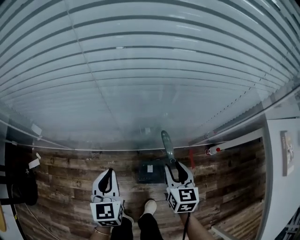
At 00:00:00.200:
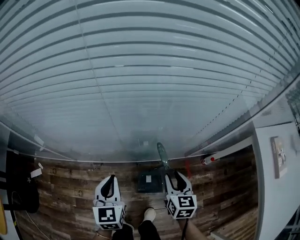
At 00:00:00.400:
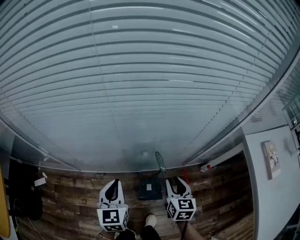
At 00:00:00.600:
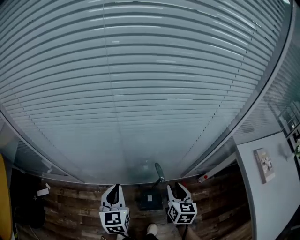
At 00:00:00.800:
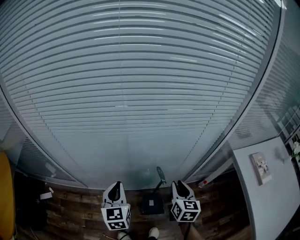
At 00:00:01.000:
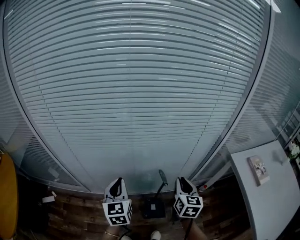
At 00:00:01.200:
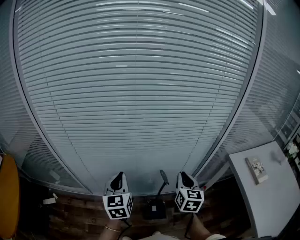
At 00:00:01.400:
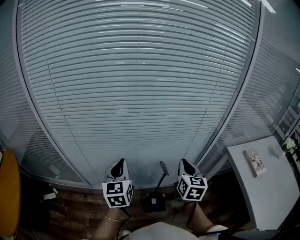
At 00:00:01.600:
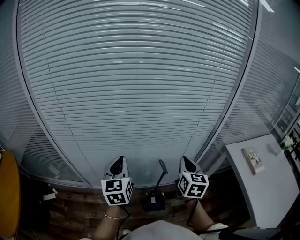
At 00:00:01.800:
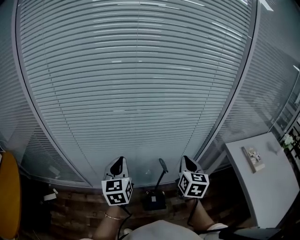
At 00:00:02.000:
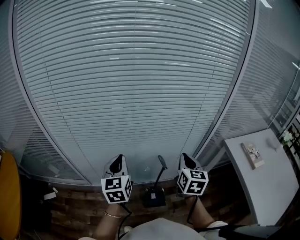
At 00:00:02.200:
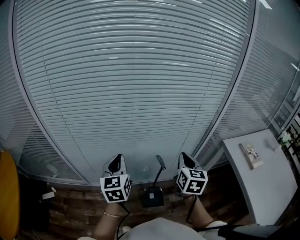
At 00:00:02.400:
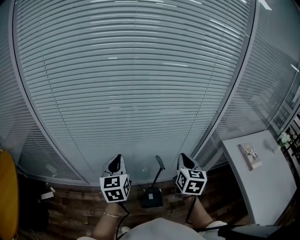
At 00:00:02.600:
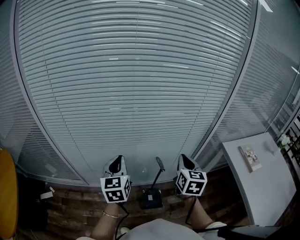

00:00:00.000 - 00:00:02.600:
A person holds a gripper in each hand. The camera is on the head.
00:00:00.000 - 00:00:01.200: The grippers both shift upward by about 30 cm. The right gripper rotates roughly 20 degrees, and closes up.
00:00:01.200 - 00:00:02.600: The right gripper is displaced upward by approximately 5 cm.

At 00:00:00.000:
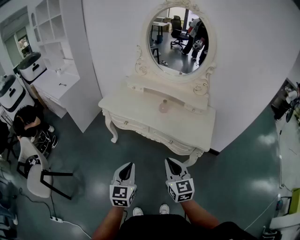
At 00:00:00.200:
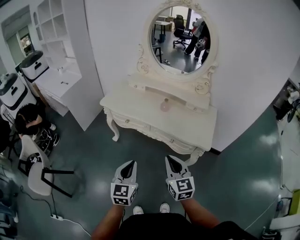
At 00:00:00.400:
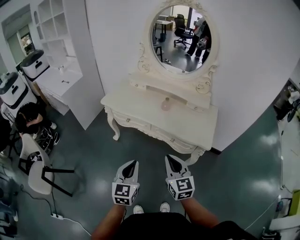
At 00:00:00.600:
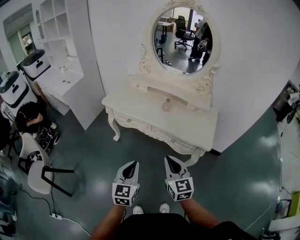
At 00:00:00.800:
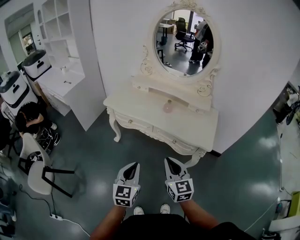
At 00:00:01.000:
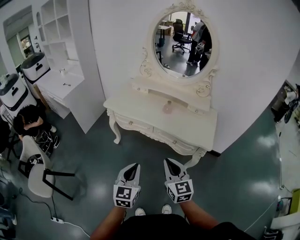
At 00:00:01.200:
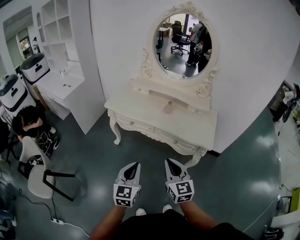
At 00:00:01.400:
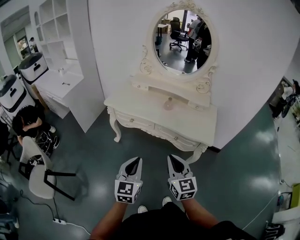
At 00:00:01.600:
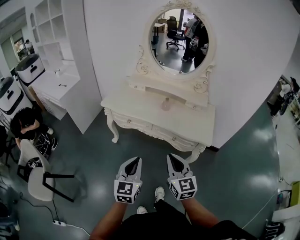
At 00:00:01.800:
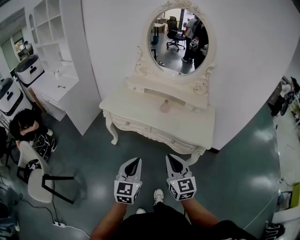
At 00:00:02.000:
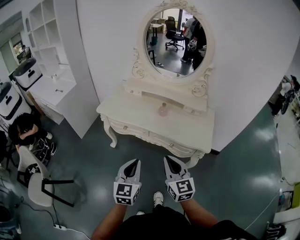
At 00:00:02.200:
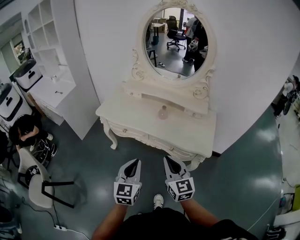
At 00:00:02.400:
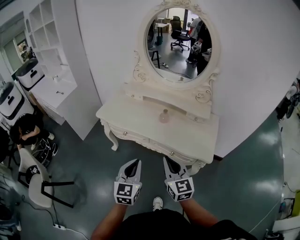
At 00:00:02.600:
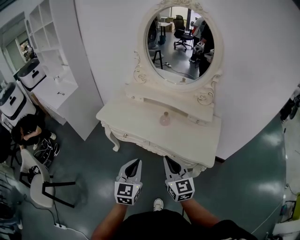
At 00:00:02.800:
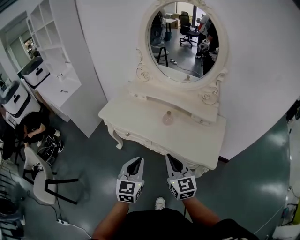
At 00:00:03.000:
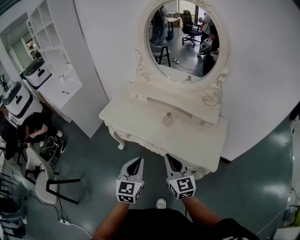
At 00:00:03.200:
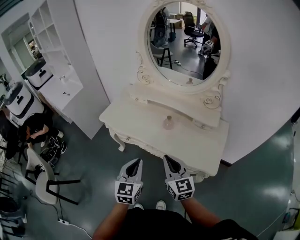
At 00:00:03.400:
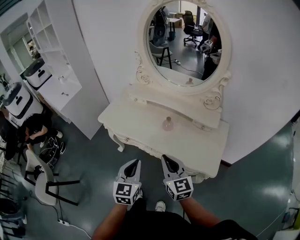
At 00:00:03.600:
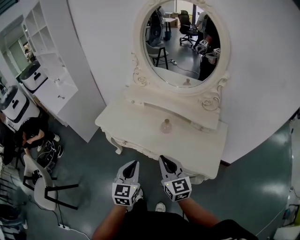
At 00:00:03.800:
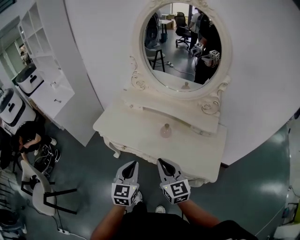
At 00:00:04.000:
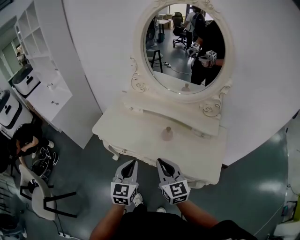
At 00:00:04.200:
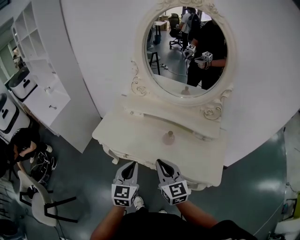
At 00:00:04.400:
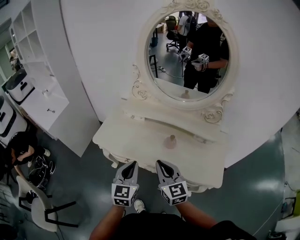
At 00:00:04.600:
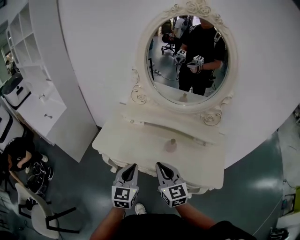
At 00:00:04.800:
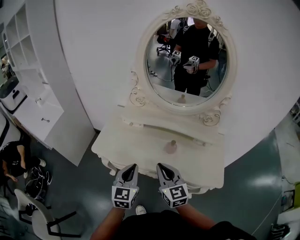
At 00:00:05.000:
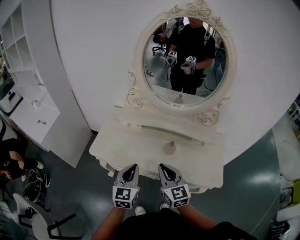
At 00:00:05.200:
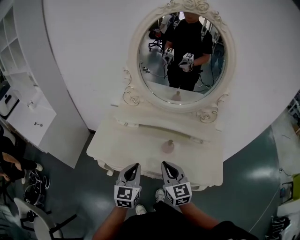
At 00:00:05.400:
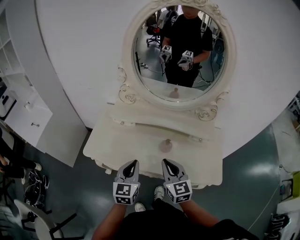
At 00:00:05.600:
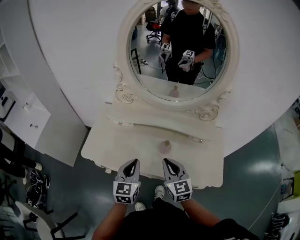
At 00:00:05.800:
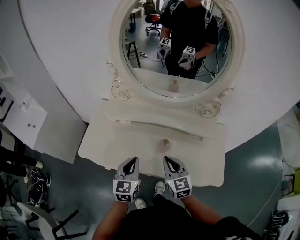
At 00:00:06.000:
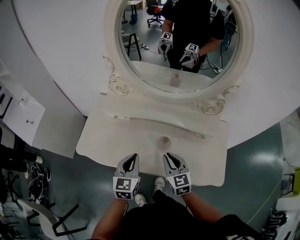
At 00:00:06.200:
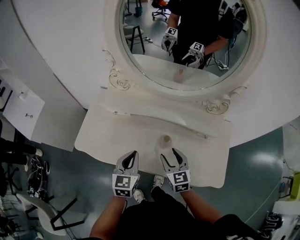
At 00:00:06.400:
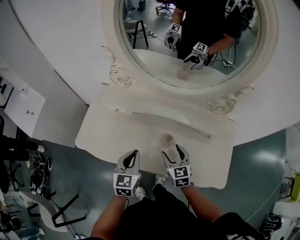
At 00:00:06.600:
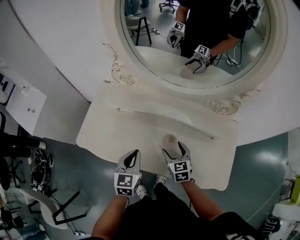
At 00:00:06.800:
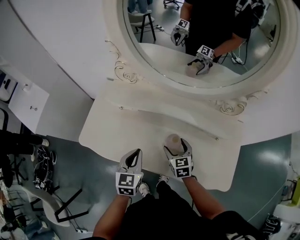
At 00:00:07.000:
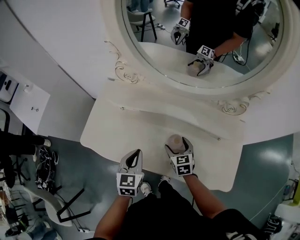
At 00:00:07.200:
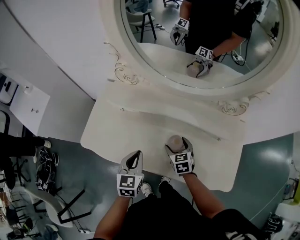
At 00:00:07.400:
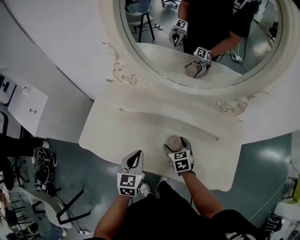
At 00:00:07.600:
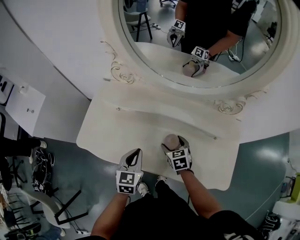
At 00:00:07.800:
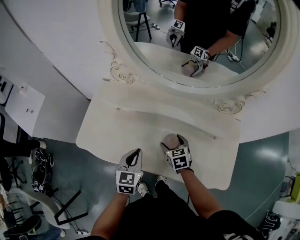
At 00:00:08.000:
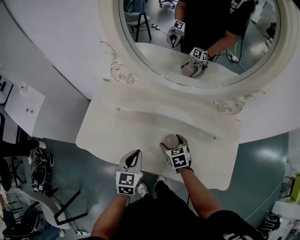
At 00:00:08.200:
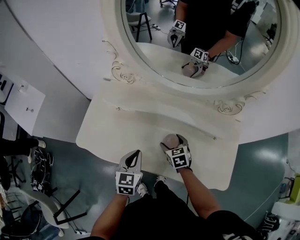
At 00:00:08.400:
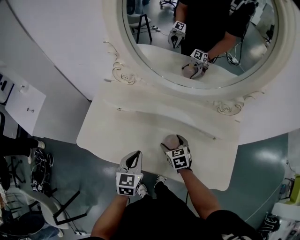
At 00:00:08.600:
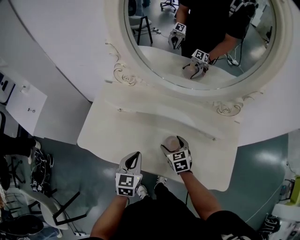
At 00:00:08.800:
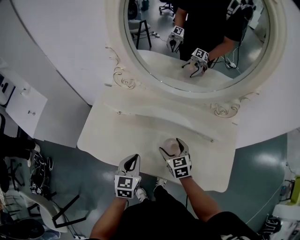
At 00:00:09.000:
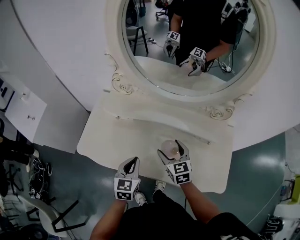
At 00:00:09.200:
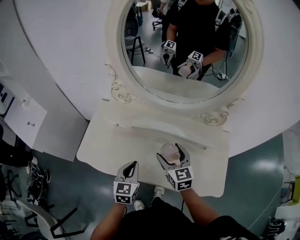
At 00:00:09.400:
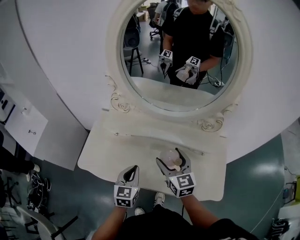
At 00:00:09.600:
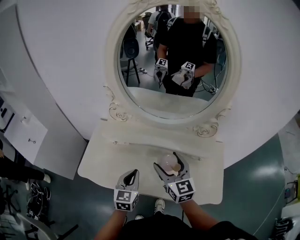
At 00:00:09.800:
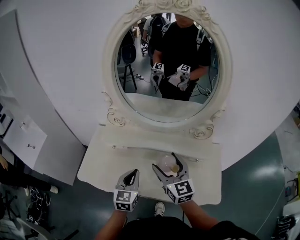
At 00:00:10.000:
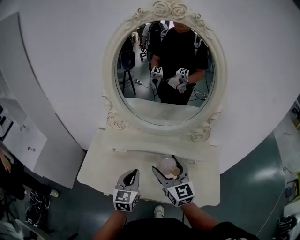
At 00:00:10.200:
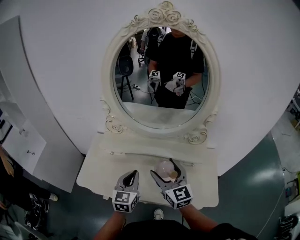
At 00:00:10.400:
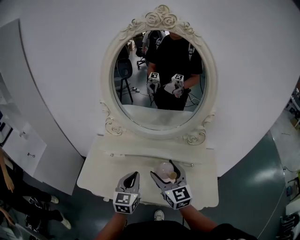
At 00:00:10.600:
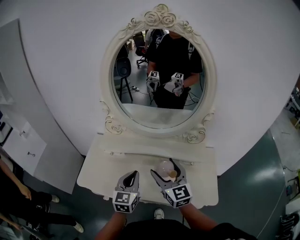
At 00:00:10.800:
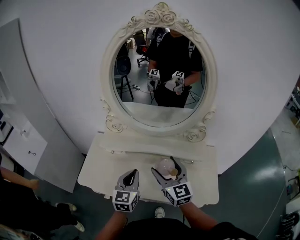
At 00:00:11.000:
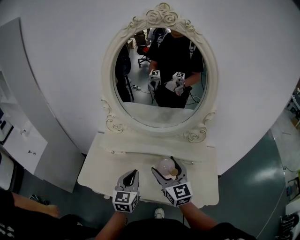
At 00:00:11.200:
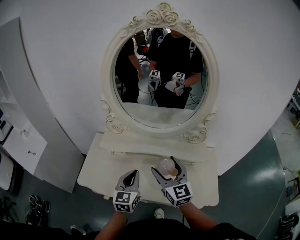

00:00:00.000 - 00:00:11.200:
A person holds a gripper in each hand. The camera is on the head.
00:00:00.000 - 00:00:01.600: The grippers stay close to where they were, moving slightly.
00:00:01.600 - 00:00:03.200: The right gripper moves forward, roughly 20 cm. Meanwhile the left gripper moves forward and to the right, about 20 cm.
00:00:03.200 - 00:00:04.800: The two grippers go approximately 20 cm forward and to the left.
00:00:04.800 - 00:00:06.400: The right gripper goes roughly 25 cm downward, forward and to the right, swivels about 20 degrees, and opens its fingers; the left gripper shifts roughly 20 cm forward, downward and to the right.
00:00:06.400 - 00:00:08.000: The right gripper is displaced downward and forward by about 10 cm.
00:00:08.000 - 00:00:09.600: The right gripper moves upward, approximately 25 cm, and tilts its fingers roughly 40 degrees upward. The left gripper travels upward by roughly 10 cm.
00:00:09.600 - 00:00:11.200: The left gripper moves upward, about 5 cm. The right gripper changes place by about 5 cm.

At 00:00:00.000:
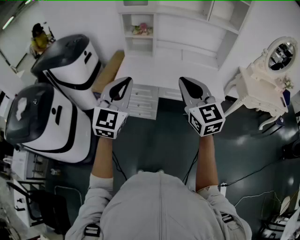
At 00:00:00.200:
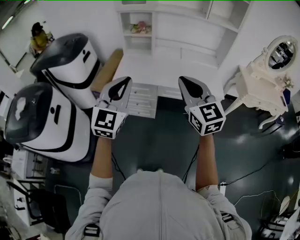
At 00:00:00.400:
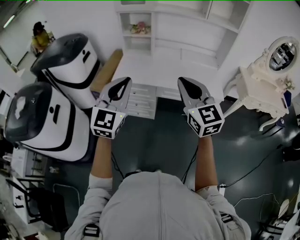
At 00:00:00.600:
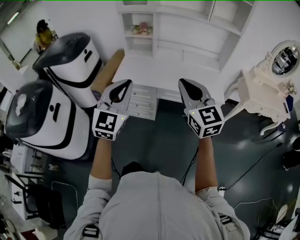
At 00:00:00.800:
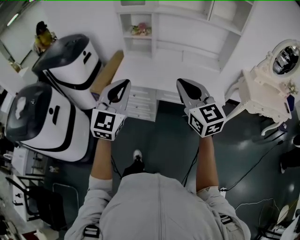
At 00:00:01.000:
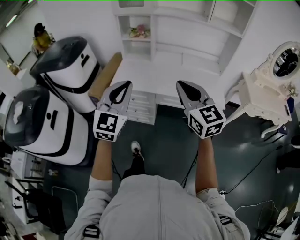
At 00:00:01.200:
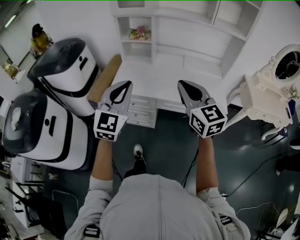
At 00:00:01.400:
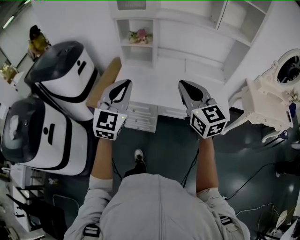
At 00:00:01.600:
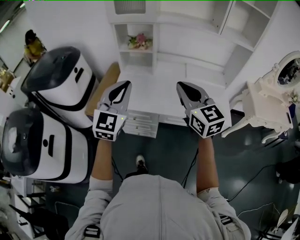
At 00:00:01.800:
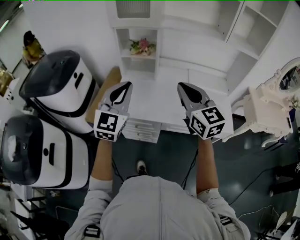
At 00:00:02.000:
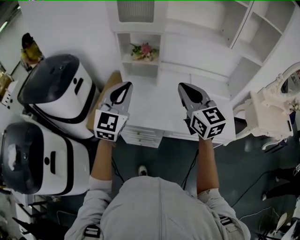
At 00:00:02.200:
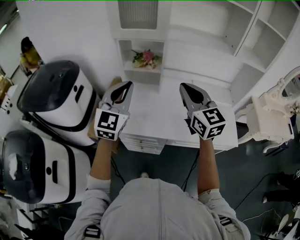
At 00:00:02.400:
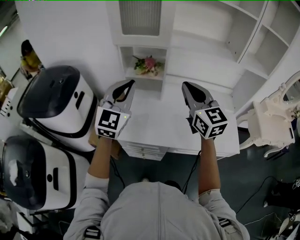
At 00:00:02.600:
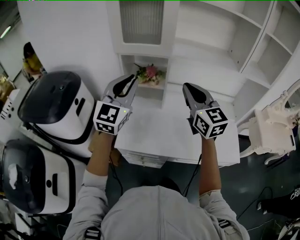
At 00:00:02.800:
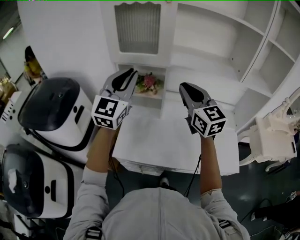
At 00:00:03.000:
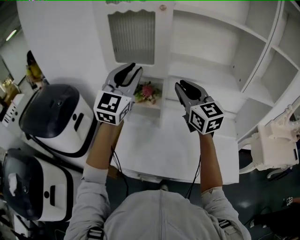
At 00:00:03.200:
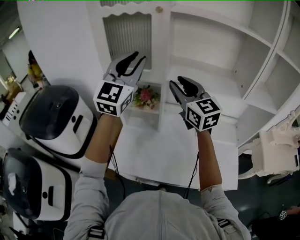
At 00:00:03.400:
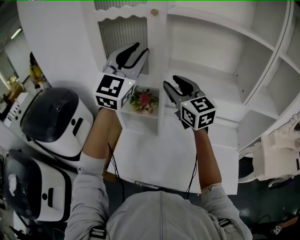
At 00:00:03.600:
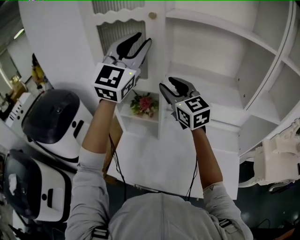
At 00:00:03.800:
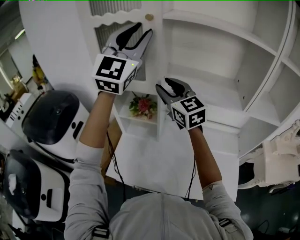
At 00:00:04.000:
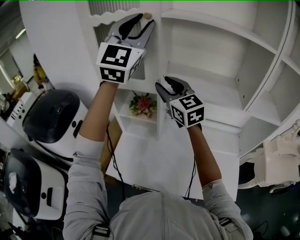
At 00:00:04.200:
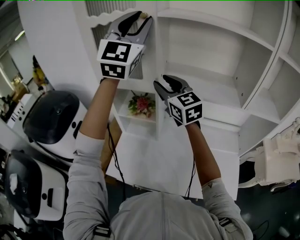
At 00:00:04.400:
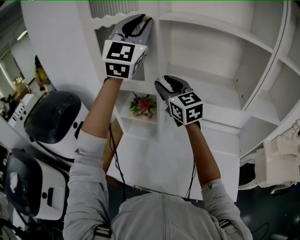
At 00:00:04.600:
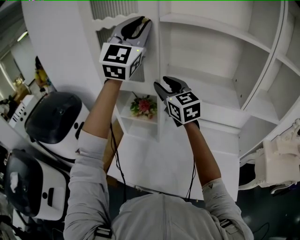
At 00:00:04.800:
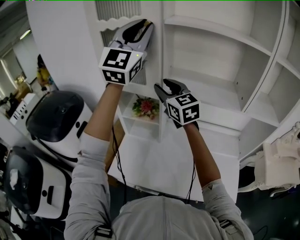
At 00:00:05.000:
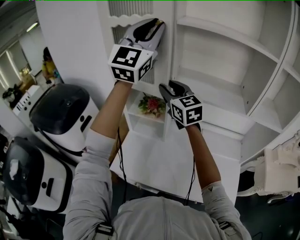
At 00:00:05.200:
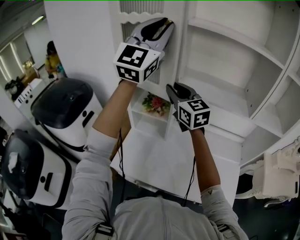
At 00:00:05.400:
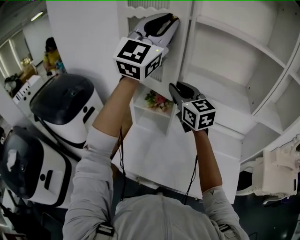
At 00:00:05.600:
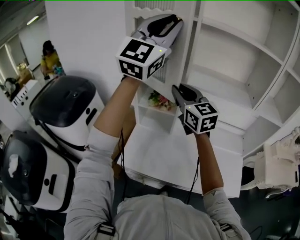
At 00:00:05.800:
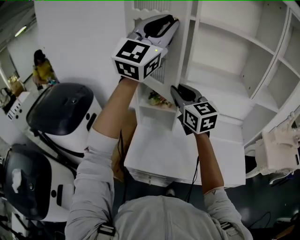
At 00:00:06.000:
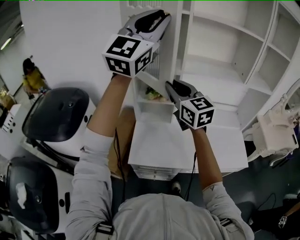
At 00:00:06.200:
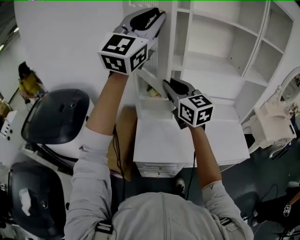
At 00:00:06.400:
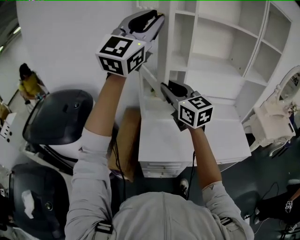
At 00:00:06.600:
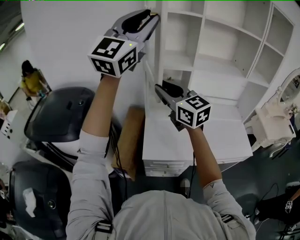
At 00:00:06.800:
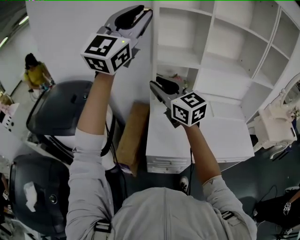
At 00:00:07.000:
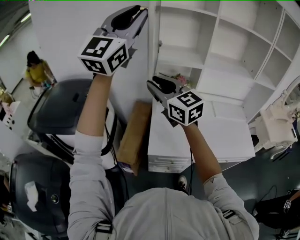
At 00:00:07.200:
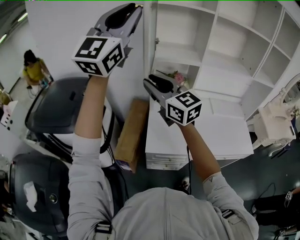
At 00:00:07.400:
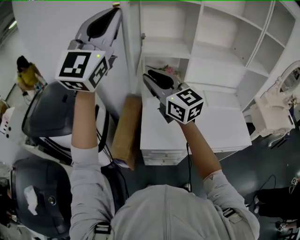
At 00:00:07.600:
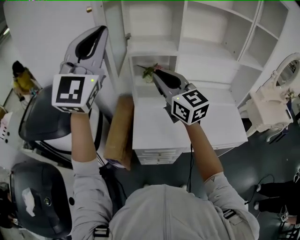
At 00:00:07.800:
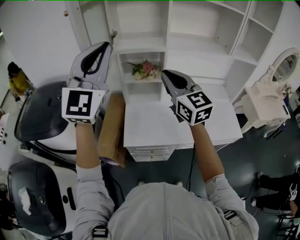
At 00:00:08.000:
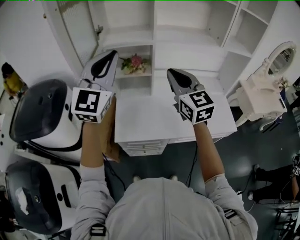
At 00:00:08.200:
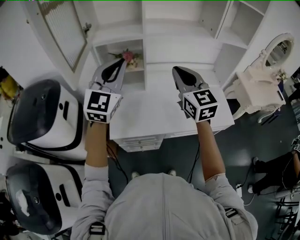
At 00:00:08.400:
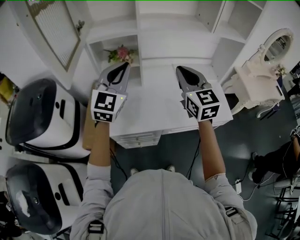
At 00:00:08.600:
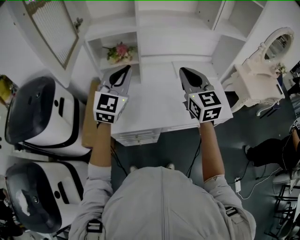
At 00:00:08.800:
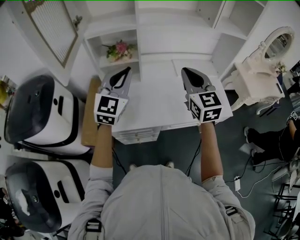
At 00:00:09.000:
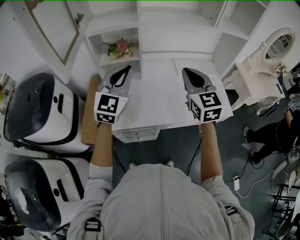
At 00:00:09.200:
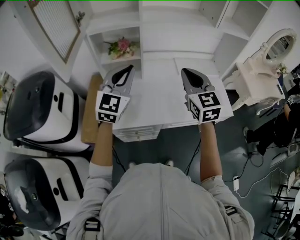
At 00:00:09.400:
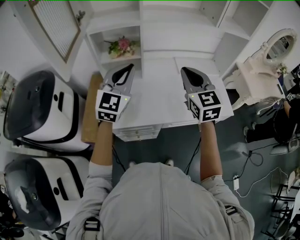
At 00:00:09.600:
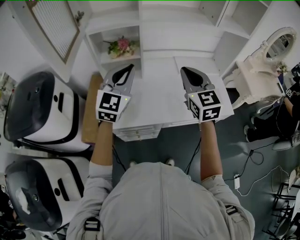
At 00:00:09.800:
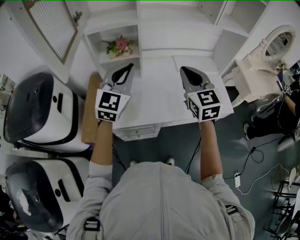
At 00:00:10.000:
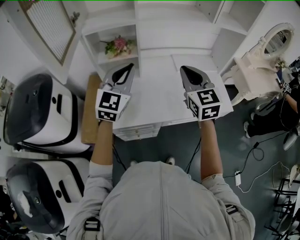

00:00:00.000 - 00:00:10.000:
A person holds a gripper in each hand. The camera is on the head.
00:00:00.000 - 00:00:01.400: The grippers both shift forward by some 20 cm.
00:00:01.400 - 00:00:02.800: The two grippers go approximately 35 cm forward.
00:00:02.800 - 00:00:04.200: The left gripper goes approximately 30 cm upward, forward and to the right, and swivels approximately 20 degrees. The right gripper goes about 15 cm forward, and opens up.
00:00:04.200 - 00:00:05.800: The two grippers go approximately 15 cm backward and to the left. The left gripper turns by roughly 20 degrees. The right gripper closes up.
00:00:05.800 - 00:00:07.200: The grippers both shift to the left and backward by some 25 cm.
00:00:07.200 - 00:00:08.600: The left gripper shifts about 40 cm downward and to the right, and tips its fingers downward by some 30 degrees. Meanwhile the right gripper is displaced to the right by some 40 cm, swivels approximately 40 degrees, and closes.
00:00:08.600 - 00:00:10.000: The grippers move only a little.
